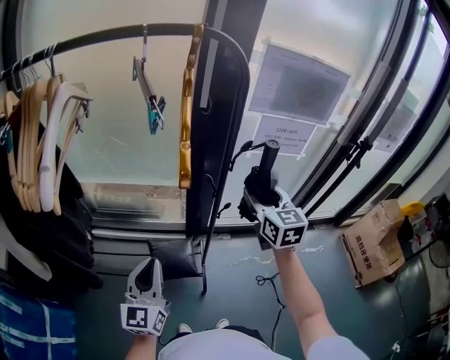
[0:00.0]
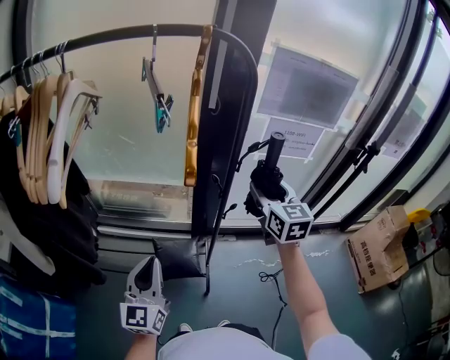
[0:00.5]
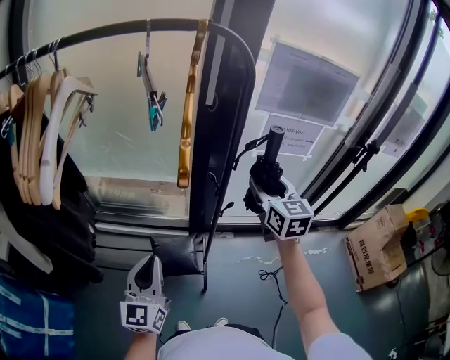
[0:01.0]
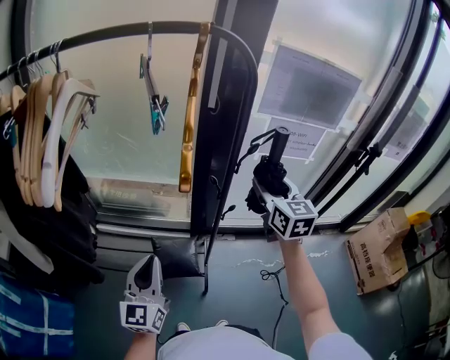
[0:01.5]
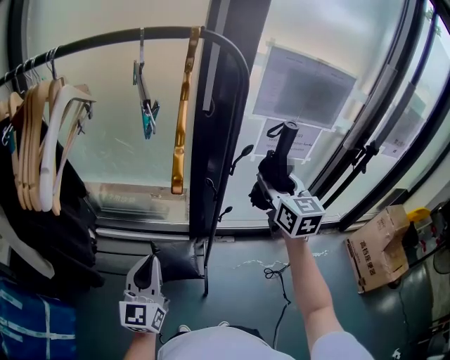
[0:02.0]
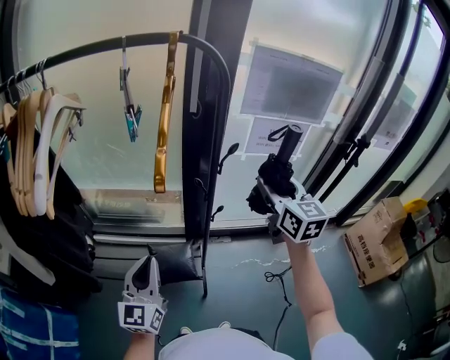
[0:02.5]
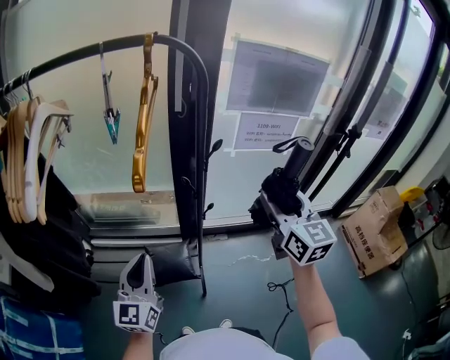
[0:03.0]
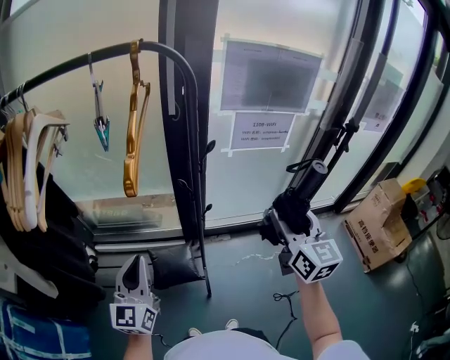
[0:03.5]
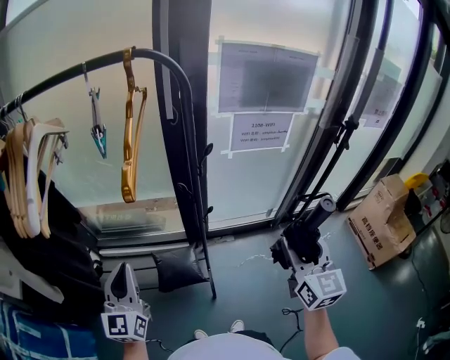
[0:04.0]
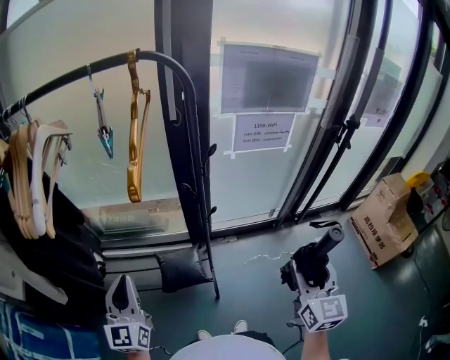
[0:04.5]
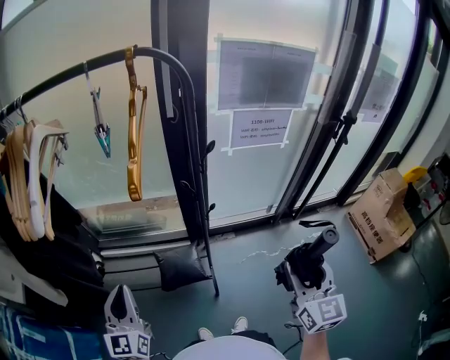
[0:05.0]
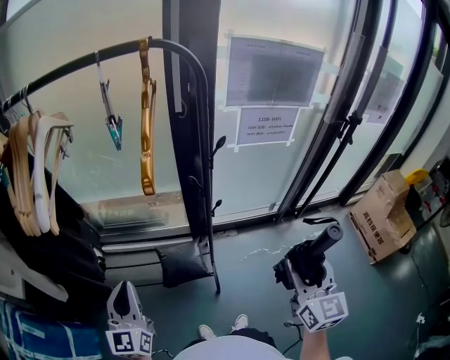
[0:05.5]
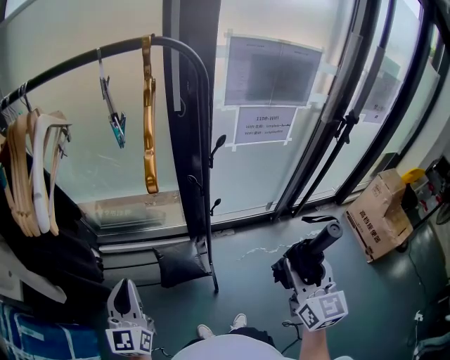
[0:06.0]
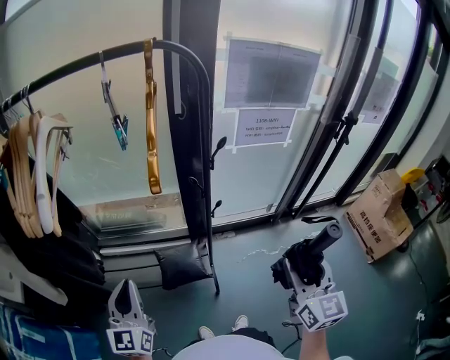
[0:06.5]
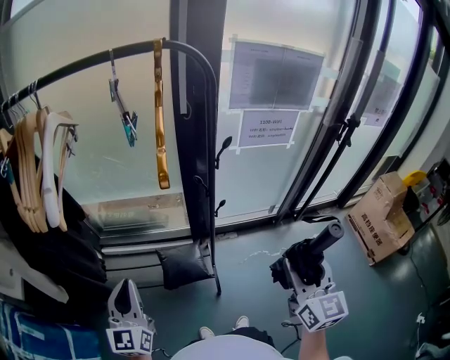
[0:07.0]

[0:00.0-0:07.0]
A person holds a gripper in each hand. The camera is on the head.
0:00.0 to 0:02.0: The right gripper moves upward, some 5 cm.
0:02.0 to 0:03.5: The right gripper shifts about 15 cm backward and to the right.
0:03.5 to 0:05.0: The right gripper heads backward, covering roughly 15 cm. Meanwhile the left gripper heads to the left and backward, covering about 10 cm.
0:05.0 to 0:07.0: The grippers stay close to where they were, moving slightly.

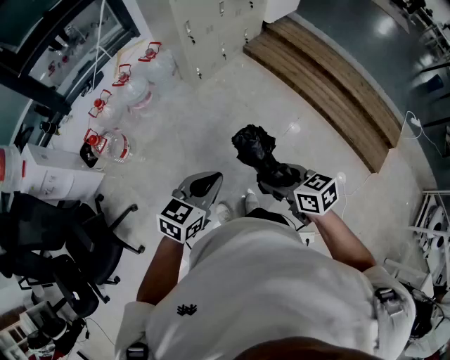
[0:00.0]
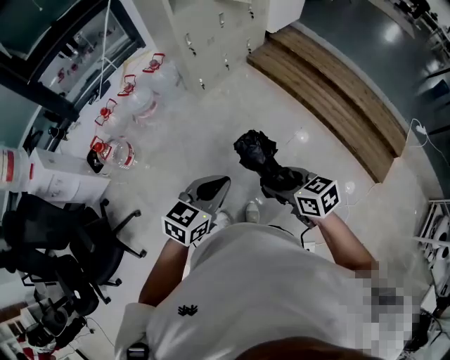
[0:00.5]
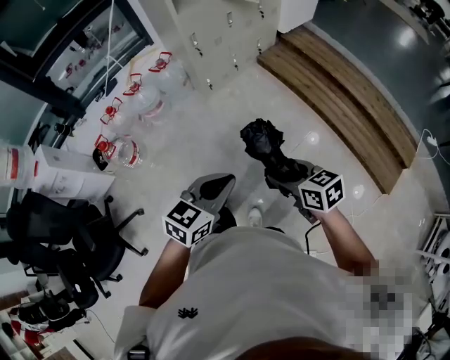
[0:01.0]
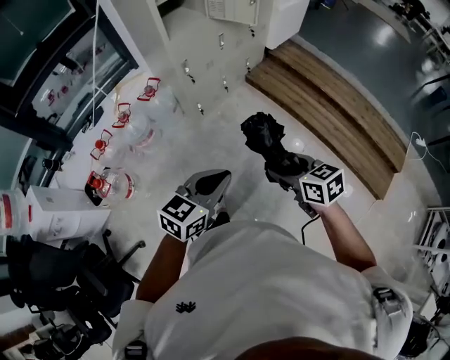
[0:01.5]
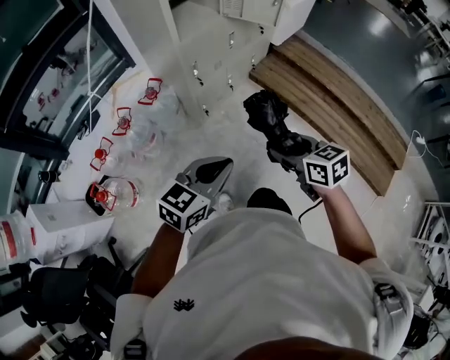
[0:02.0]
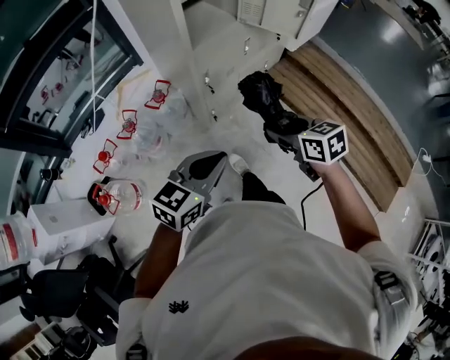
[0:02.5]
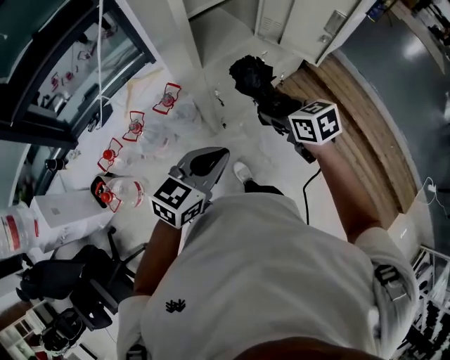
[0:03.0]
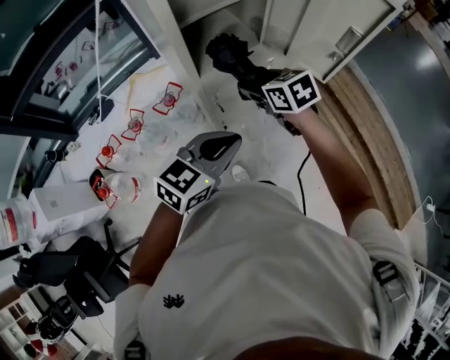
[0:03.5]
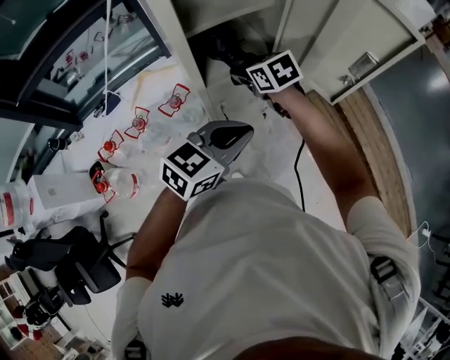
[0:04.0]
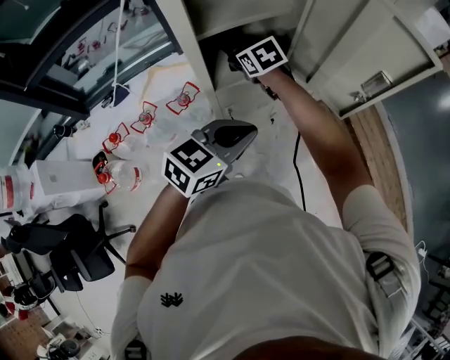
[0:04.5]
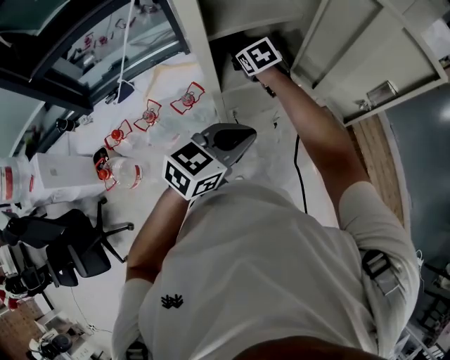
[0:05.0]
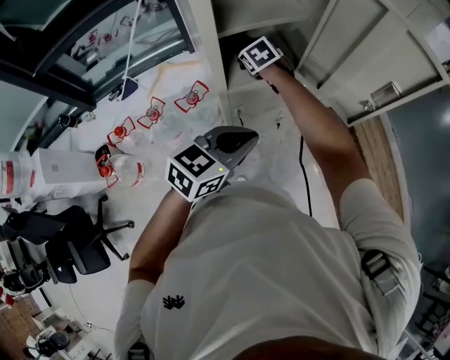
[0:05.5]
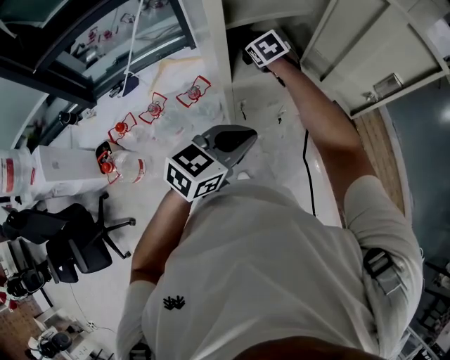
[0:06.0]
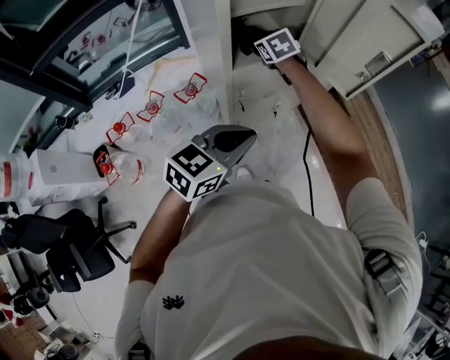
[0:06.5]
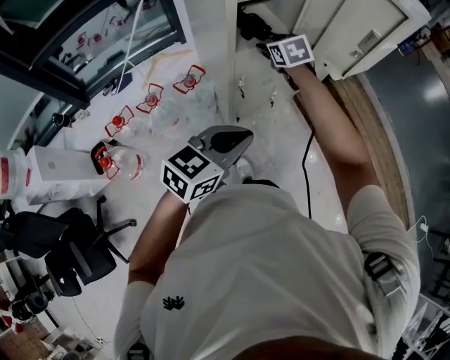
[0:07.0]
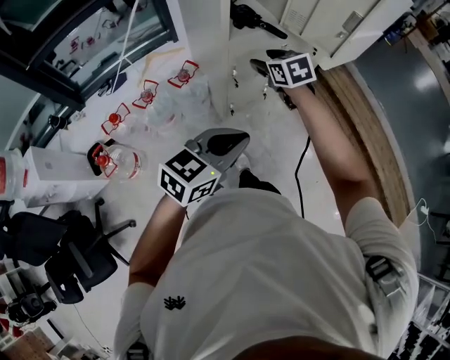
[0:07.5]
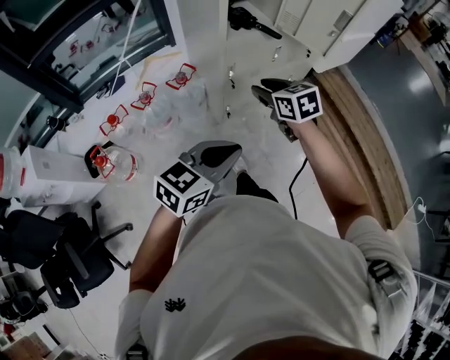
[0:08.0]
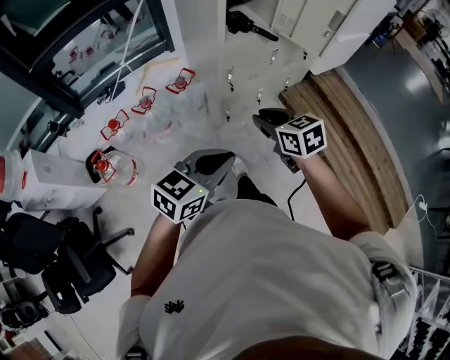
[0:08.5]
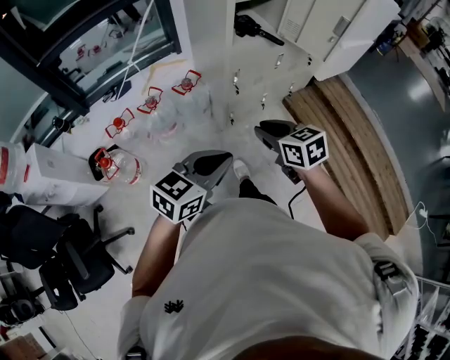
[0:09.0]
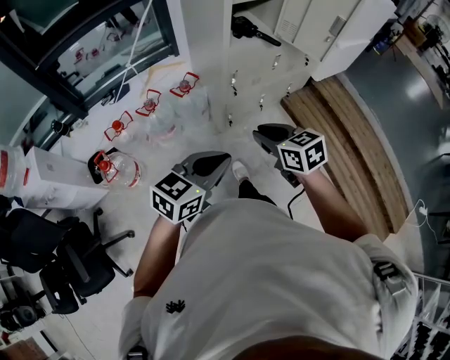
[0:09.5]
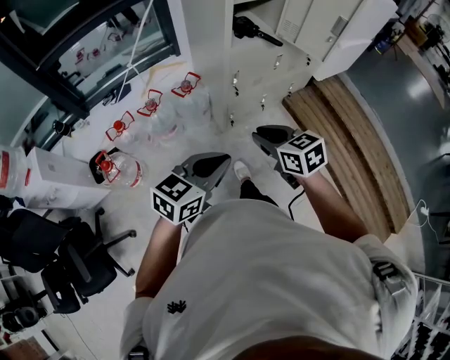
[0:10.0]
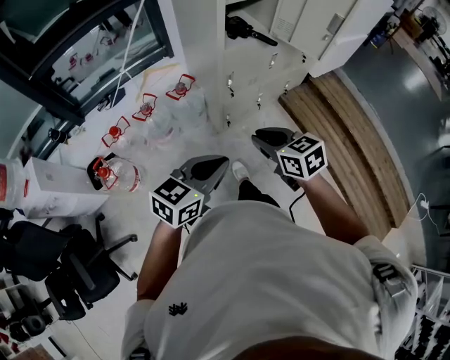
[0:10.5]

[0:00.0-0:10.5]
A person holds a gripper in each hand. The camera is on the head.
0:00.0 to 0:02.0: The grippers both shift forward by some 40 cm.
0:02.0 to 0:04.0: Both grippers move forward, about 40 cm. The right gripper changes its angle by roughly 30 degrees.
0:04.0 to 0:06.5: The left gripper heads backward and to the left, covering some 10 cm.
0:06.5 to 0:08.5: The left gripper moves backward, some 25 cm; the right gripper travels backward by roughly 40 cm, swivels roughly 20 degrees, and closes up.
0:08.5 to 0:10.5: The grippers stay close to where they were, moving slightly.

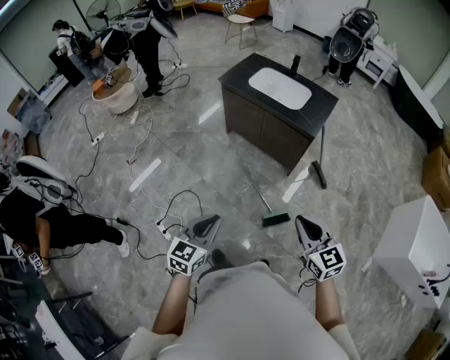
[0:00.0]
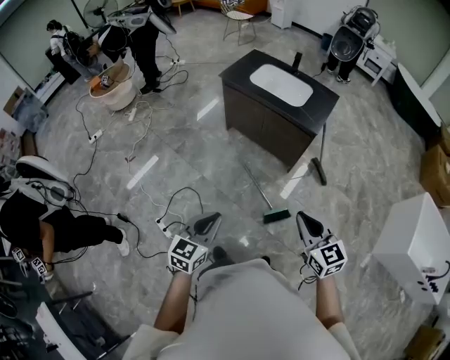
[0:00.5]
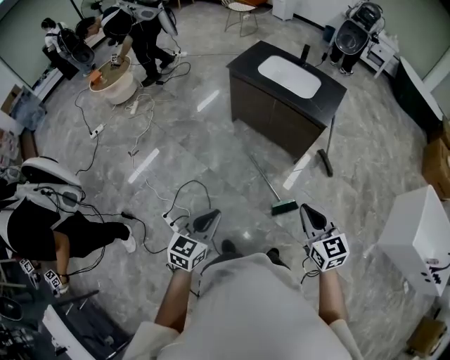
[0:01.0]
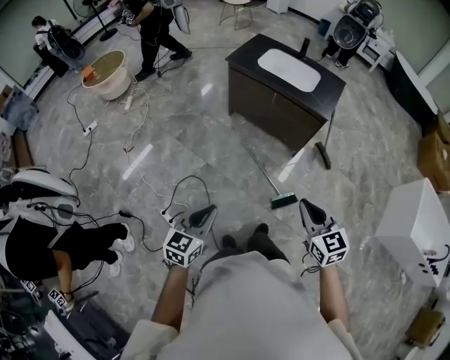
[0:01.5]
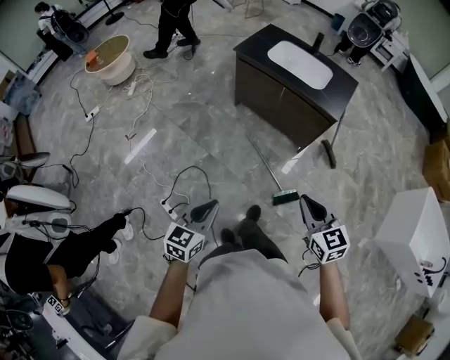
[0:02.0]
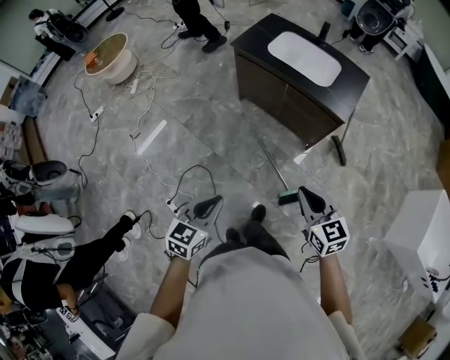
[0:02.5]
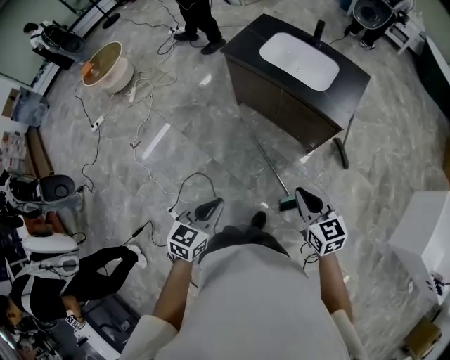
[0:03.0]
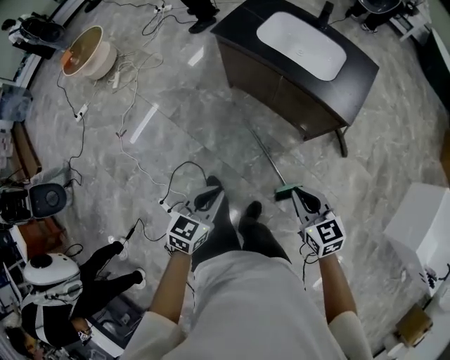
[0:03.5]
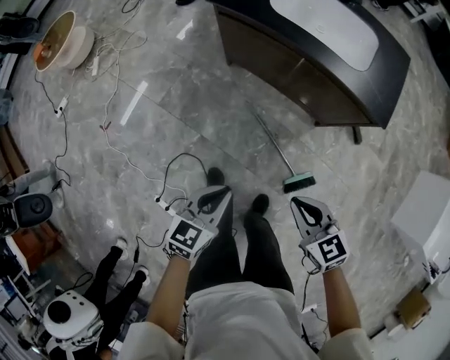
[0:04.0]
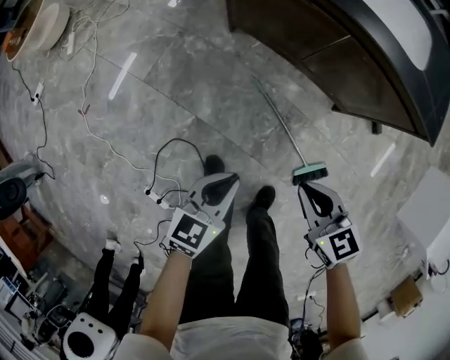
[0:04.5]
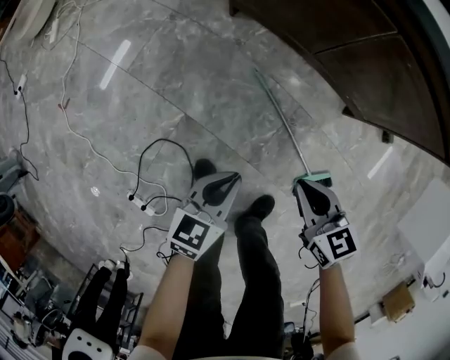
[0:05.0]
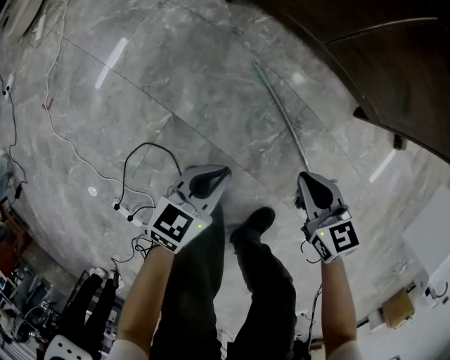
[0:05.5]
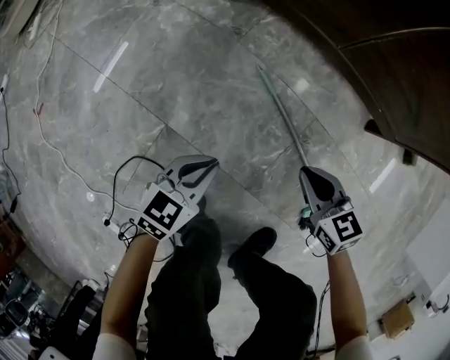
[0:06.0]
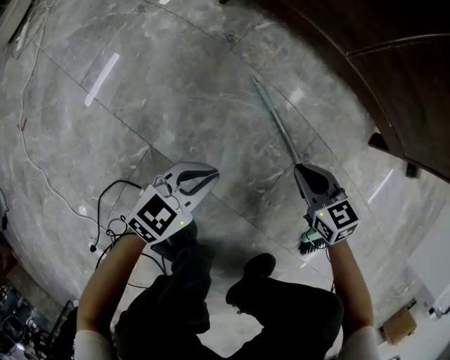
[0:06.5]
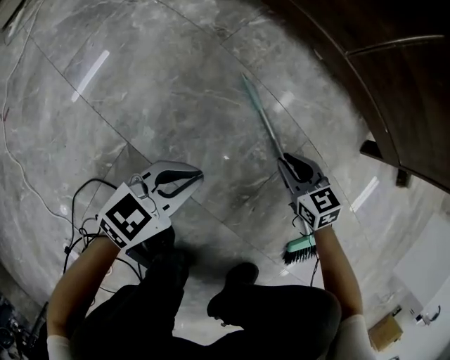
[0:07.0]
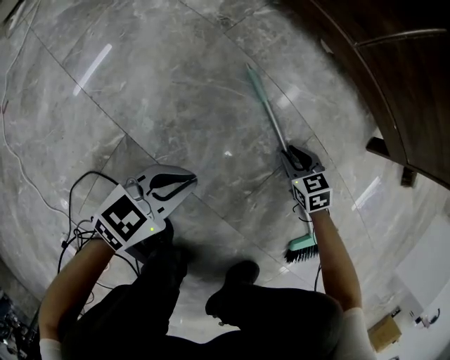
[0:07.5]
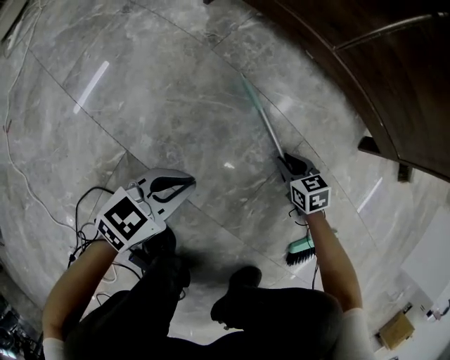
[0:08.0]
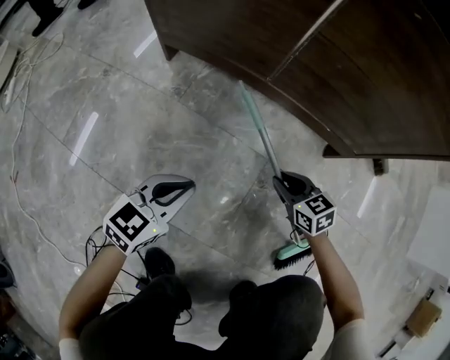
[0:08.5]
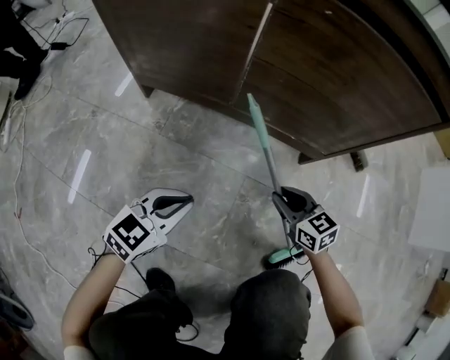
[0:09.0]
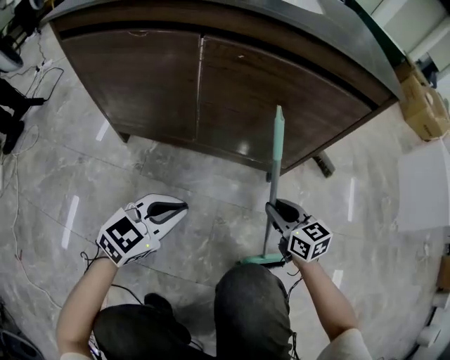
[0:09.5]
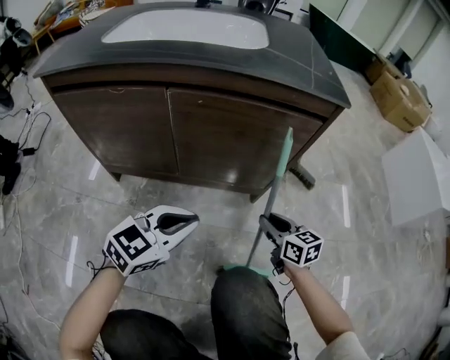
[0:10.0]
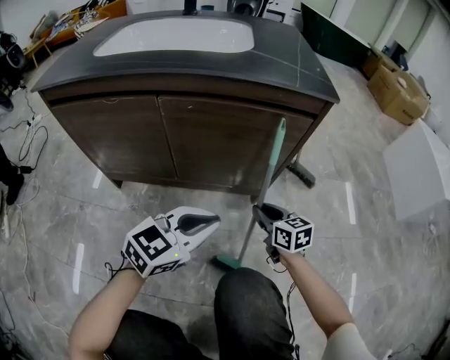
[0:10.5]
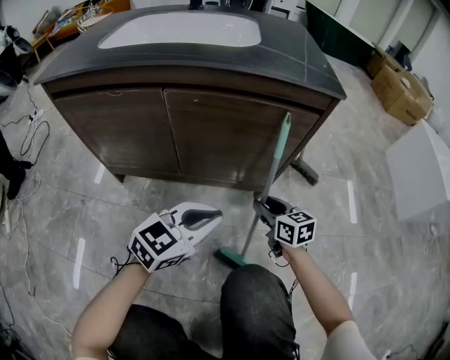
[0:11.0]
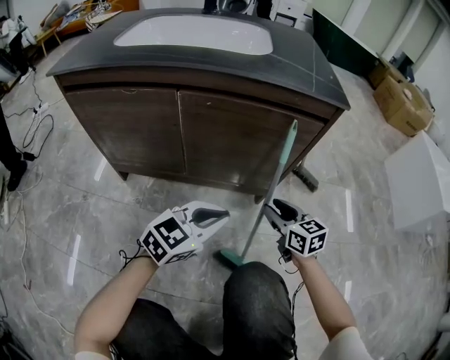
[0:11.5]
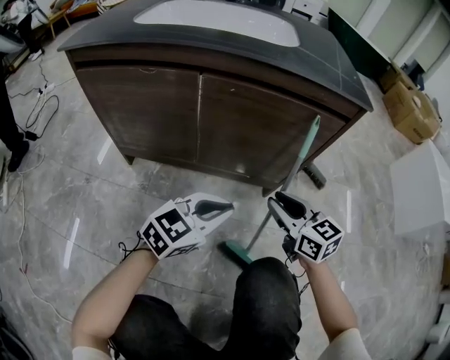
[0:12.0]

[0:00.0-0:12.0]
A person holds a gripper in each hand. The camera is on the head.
0:00.0 to 0:02.0: The right gripper heads to the left and forward, covering approximately 15 cm. Meanwhile the left gripper travels to the left by approximately 15 cm.
0:02.0 to 0:04.0: Both grippers travel together forward and downward, about 40 cm.
0:04.0 to 0:06.0: The grippers both shift downward by some 60 cm.
0:06.0 to 0:08.0: The left gripper is displaced downward by about 10 cm; the right gripper travels downward by approximately 30 cm.
0:08.0 to 0:10.0: Both grippers travel together upward, about 35 cm. The right gripper rotates some 50 degrees. Meanwhile the left gripper changes its angle by some 40 degrees.
0:10.0 to 0:12.0: The right gripper shifts about 10 cm upward and to the left.
